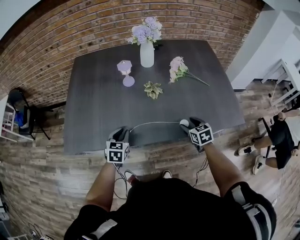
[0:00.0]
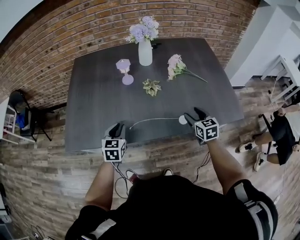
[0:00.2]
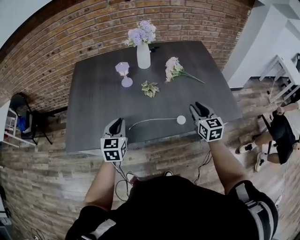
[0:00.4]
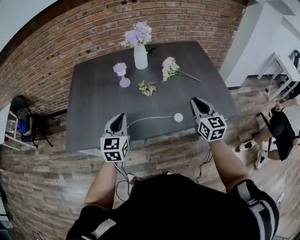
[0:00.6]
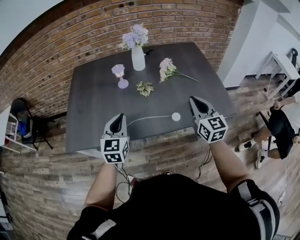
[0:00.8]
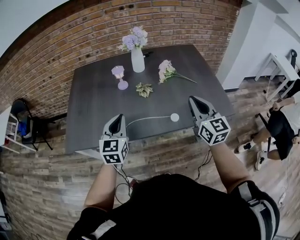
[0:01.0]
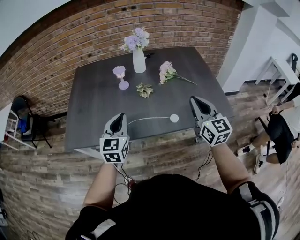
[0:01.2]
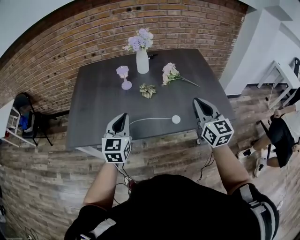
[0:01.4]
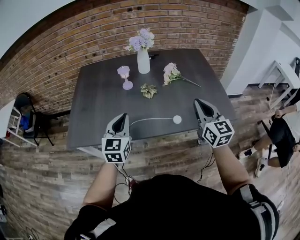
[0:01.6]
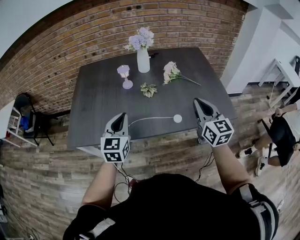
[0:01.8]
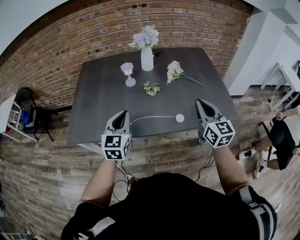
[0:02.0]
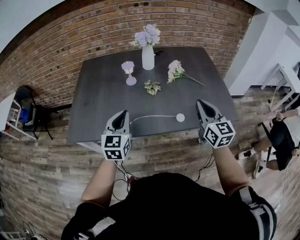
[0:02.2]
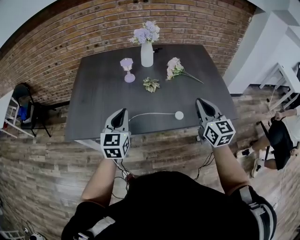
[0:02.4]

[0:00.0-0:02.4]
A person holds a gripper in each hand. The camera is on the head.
0:00.0 to 0:01.2: The grippers both shift upward by approximately 25 cm. The left gripper changes its angle by some 30 degrees. Meanwhile the right gripper tilts its fingers about 40 degrees upward, and closes.
0:01.2 to 0:02.4: There are only small adjustments of the grippers.

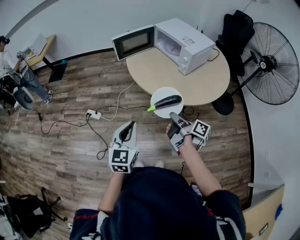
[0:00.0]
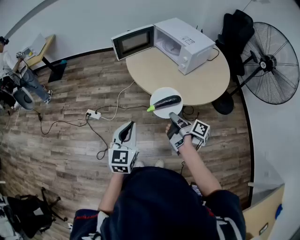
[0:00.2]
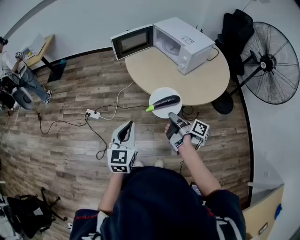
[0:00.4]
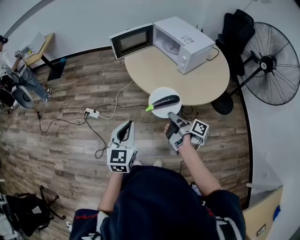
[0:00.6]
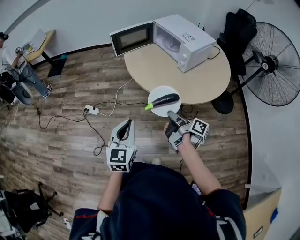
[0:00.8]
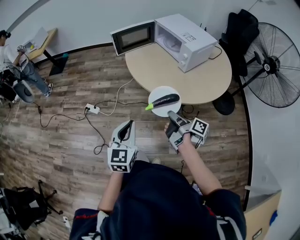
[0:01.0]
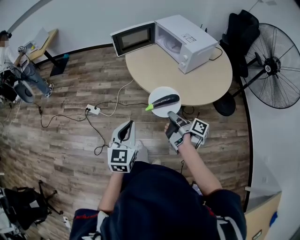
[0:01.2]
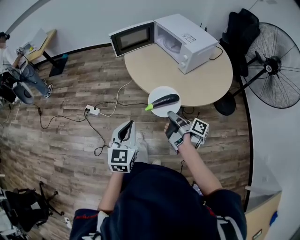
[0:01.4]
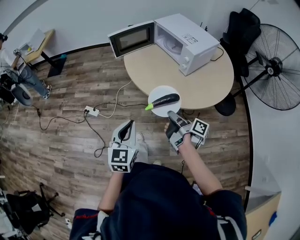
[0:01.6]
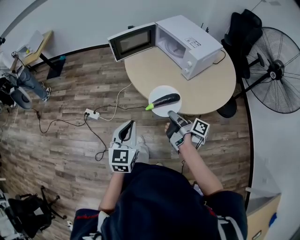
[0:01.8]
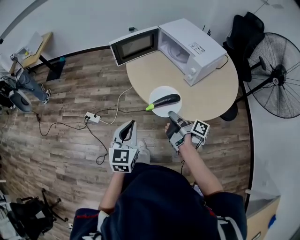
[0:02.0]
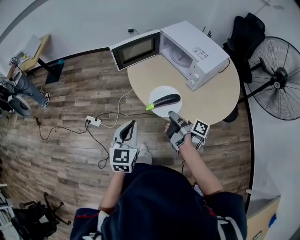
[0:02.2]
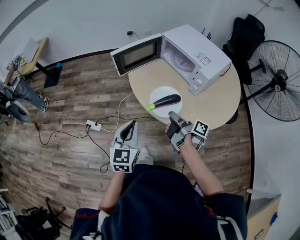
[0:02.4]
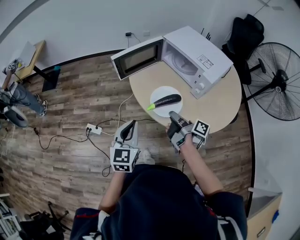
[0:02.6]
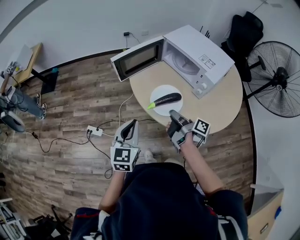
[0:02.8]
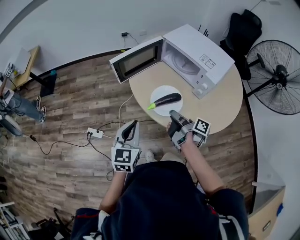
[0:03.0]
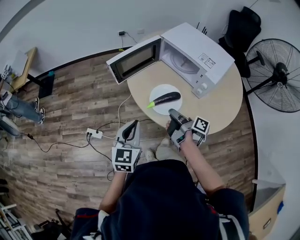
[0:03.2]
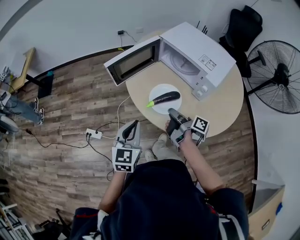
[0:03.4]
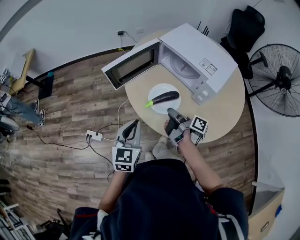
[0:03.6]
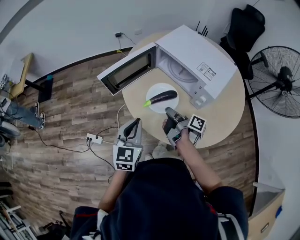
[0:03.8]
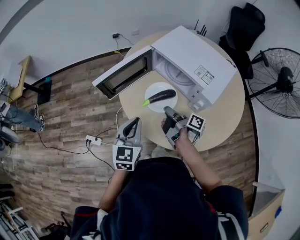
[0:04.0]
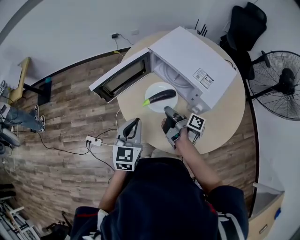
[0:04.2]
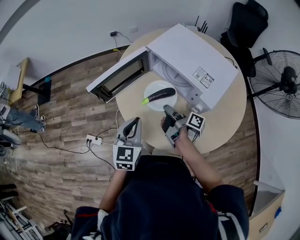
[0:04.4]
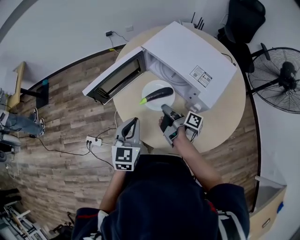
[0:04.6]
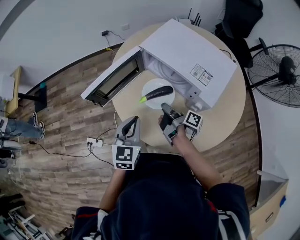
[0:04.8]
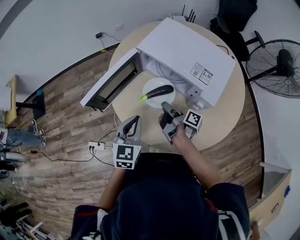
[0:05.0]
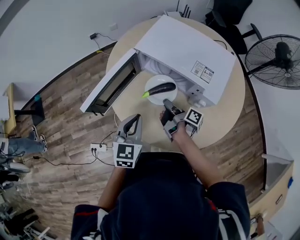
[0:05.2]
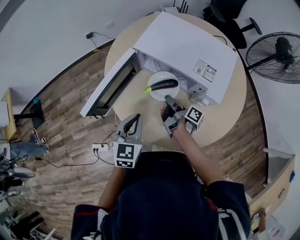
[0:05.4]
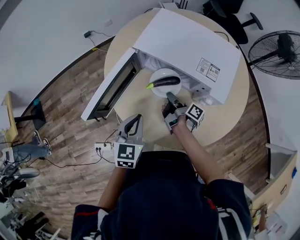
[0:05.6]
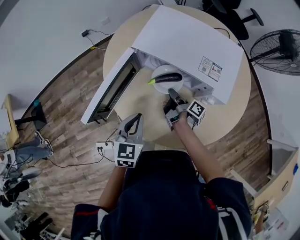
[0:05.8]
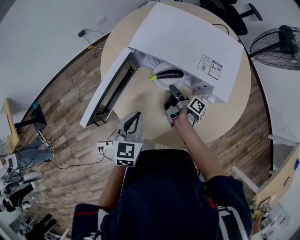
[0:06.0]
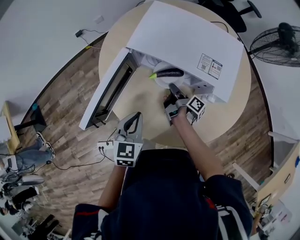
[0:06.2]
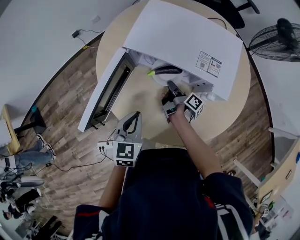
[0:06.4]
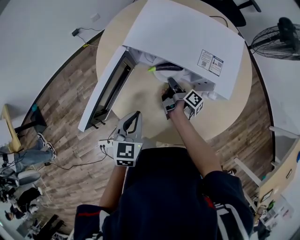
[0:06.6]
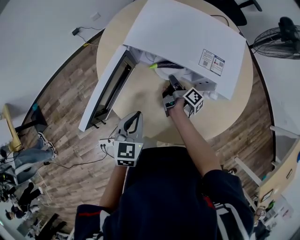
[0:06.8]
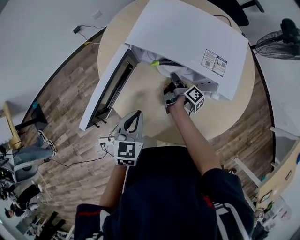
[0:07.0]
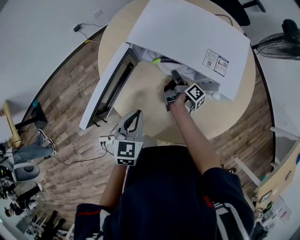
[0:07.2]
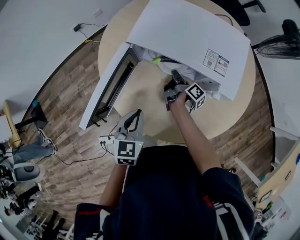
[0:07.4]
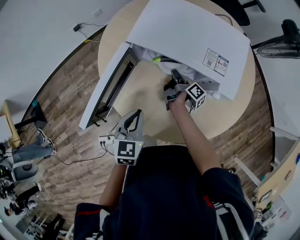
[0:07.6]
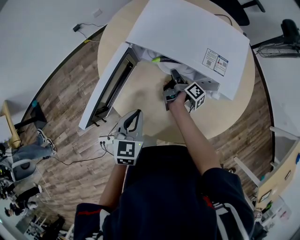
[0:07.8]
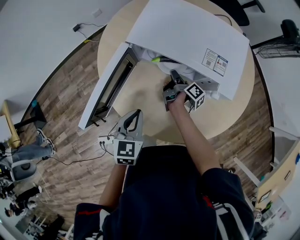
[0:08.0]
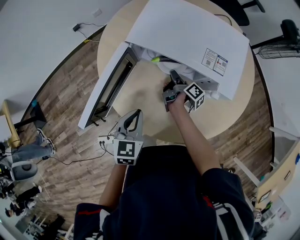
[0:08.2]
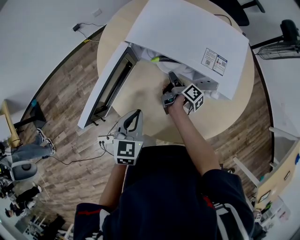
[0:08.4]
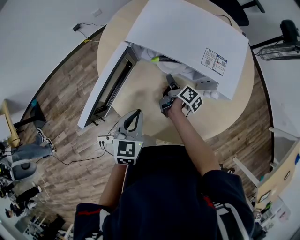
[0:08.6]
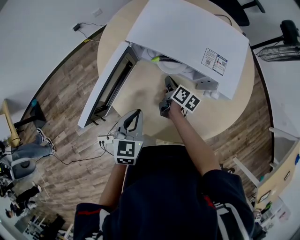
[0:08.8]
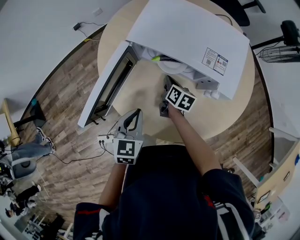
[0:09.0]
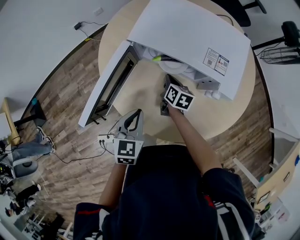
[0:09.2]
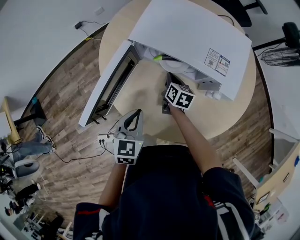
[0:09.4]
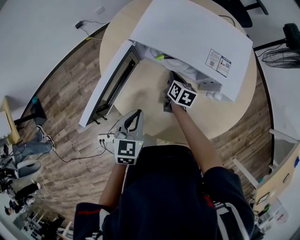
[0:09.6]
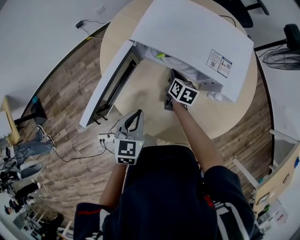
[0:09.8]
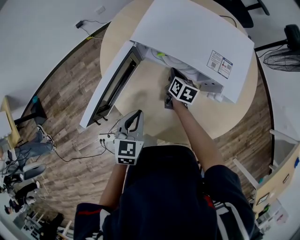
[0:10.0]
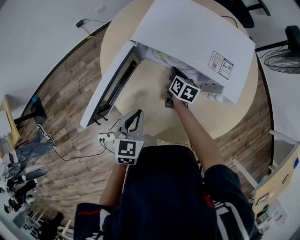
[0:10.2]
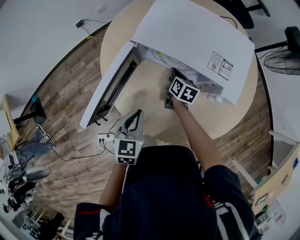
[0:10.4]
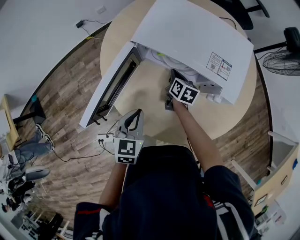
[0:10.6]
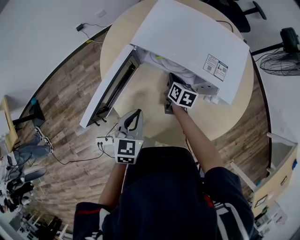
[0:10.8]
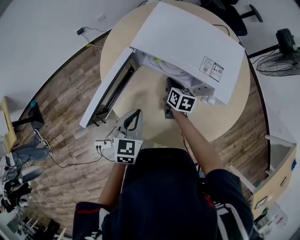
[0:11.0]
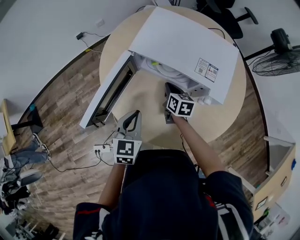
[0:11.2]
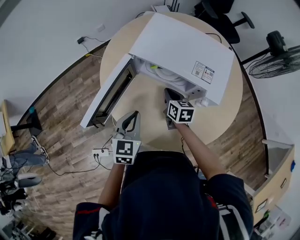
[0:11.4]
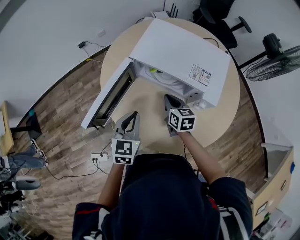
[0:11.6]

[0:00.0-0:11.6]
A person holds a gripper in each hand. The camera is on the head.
0:01.4 to 0:02.8: The left gripper ends up about 30 cm from where it was.
0:02.8 to 0:04.4: The left gripper shifts by about 20 cm.
0:04.4 to 0:05.8: The left gripper changes place by roughly 10 cm, and turns by about 20 degrees.
0:10.2 to 0:11.6: The left gripper is displaced upward by about 5 cm.

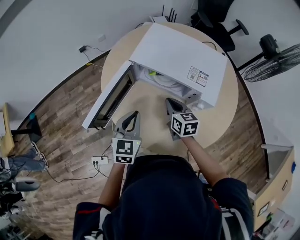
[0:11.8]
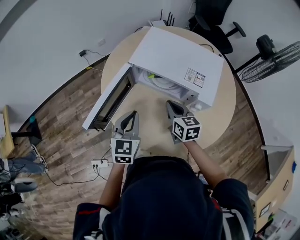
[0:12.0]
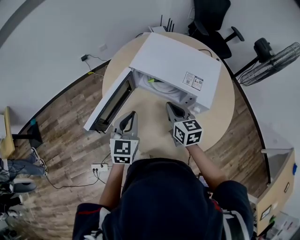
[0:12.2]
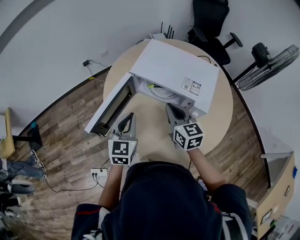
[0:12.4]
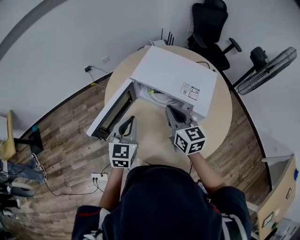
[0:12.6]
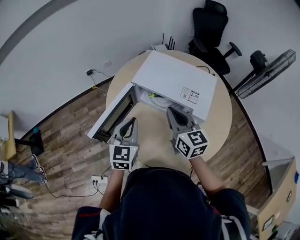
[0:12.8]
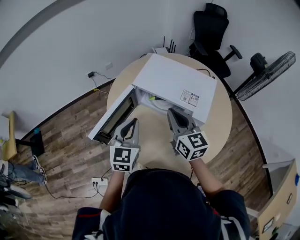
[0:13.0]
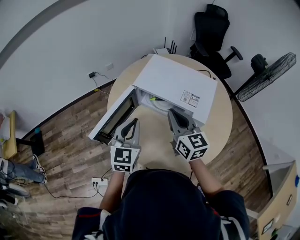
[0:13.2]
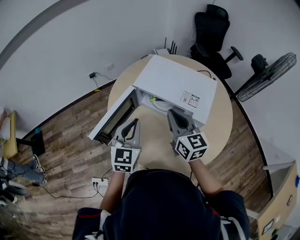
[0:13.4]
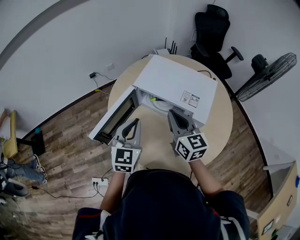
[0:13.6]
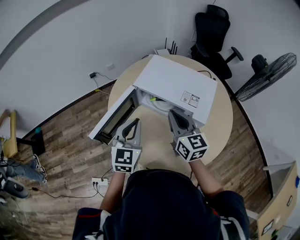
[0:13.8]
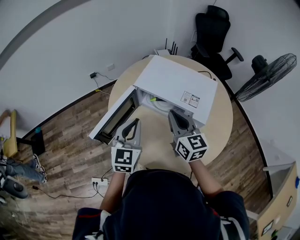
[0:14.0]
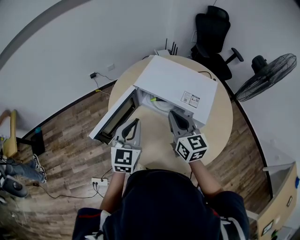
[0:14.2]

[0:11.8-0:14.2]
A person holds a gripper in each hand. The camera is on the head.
0:11.8 to 0:13.0: The left gripper shifts roughly 10 cm upward.

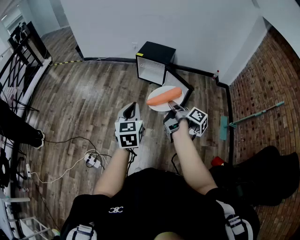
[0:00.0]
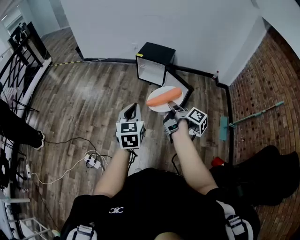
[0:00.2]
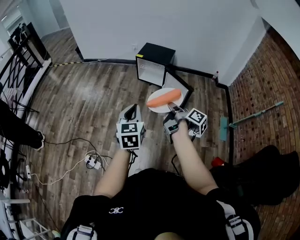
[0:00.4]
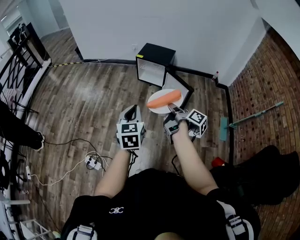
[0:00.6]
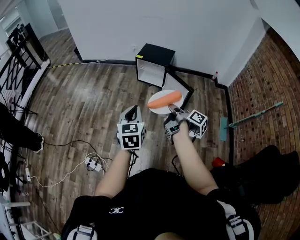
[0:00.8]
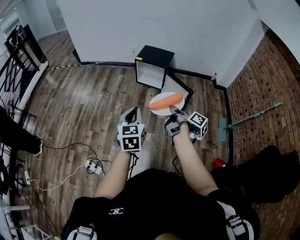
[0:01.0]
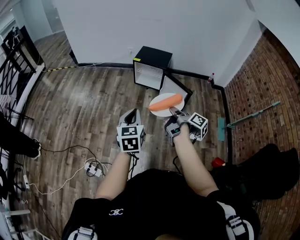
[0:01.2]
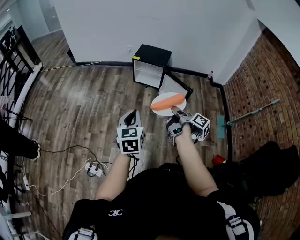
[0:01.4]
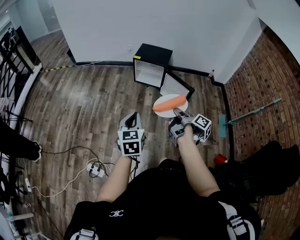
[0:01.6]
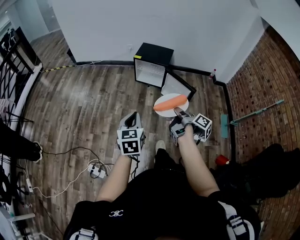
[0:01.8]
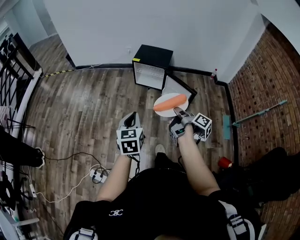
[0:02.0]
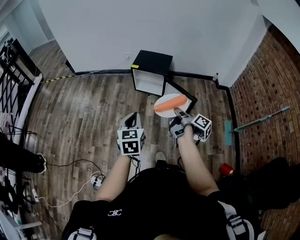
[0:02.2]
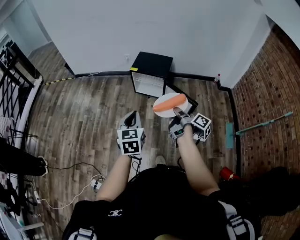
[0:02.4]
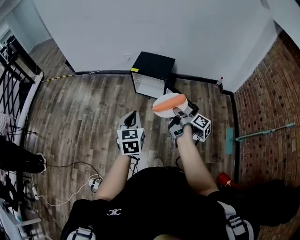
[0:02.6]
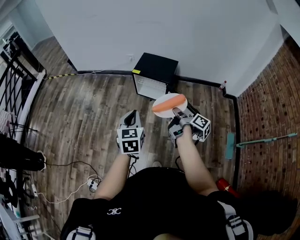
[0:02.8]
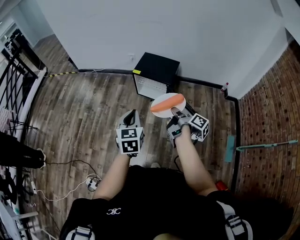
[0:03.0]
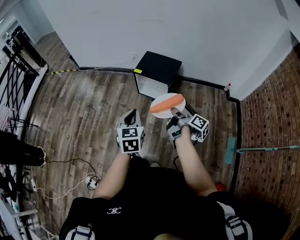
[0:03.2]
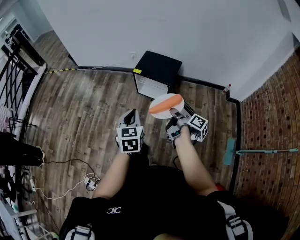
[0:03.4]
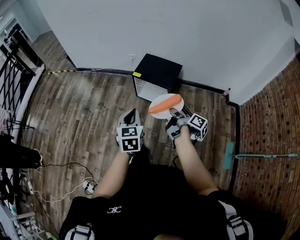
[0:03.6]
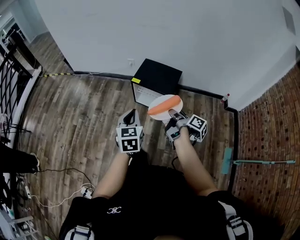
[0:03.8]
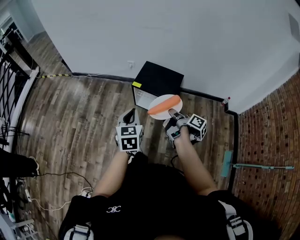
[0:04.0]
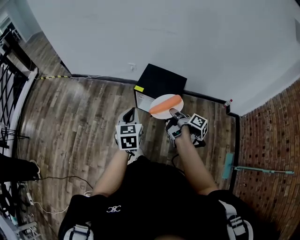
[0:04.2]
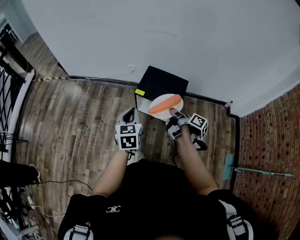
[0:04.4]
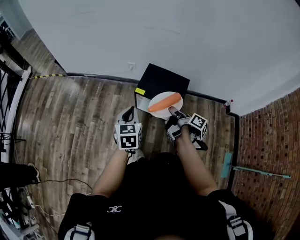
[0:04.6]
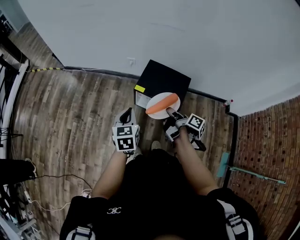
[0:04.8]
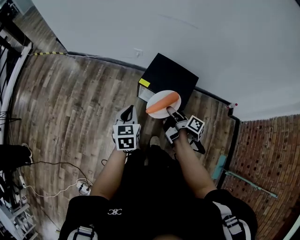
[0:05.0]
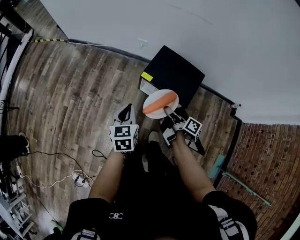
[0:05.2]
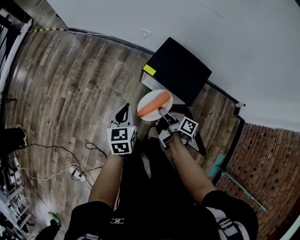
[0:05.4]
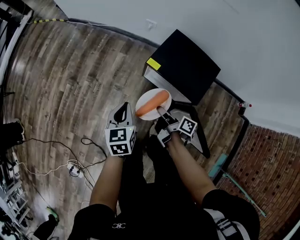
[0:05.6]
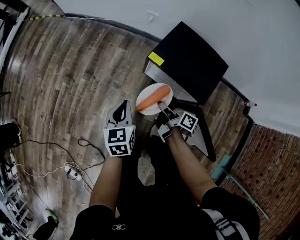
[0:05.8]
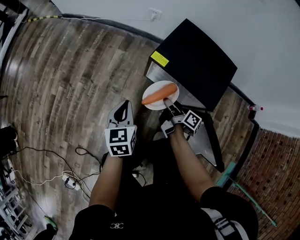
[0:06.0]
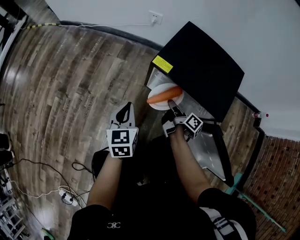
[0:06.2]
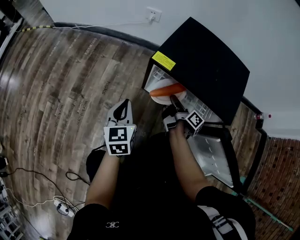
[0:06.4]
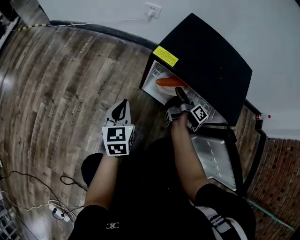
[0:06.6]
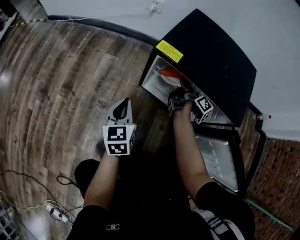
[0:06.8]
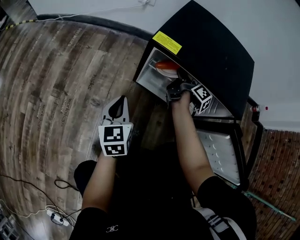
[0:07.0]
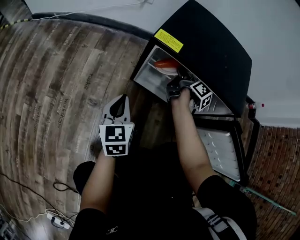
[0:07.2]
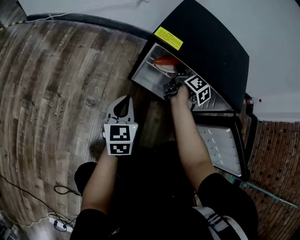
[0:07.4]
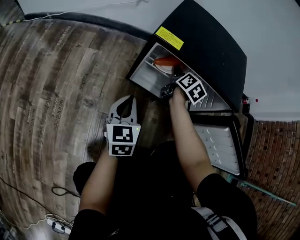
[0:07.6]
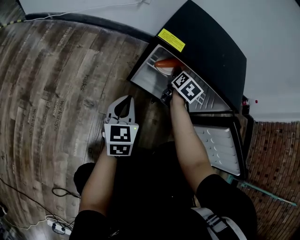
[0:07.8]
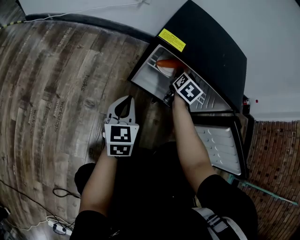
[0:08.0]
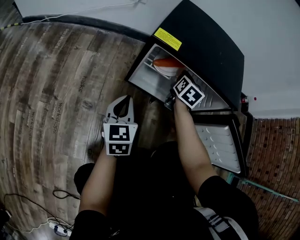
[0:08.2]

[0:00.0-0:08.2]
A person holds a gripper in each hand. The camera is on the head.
0:00.0 to 0:01.6: The left gripper moves some 10 cm.
0:01.6 to 0:03.2: The left gripper moves some 35 cm.
0:03.2 to 0:05.0: The left gripper moves about 40 cm.
0:05.0 to 0:06.6: The left gripper heads downward, covering roughly 50 cm.
0:06.6 to 0:08.2: The left gripper ends up roughly 5 cm from where it was.
